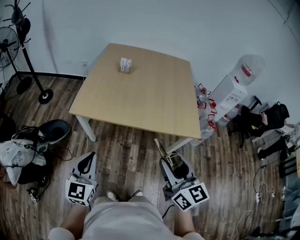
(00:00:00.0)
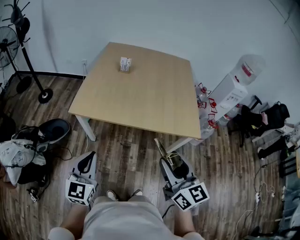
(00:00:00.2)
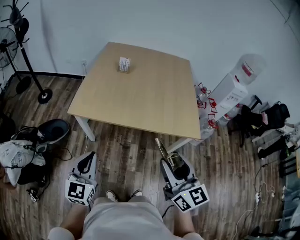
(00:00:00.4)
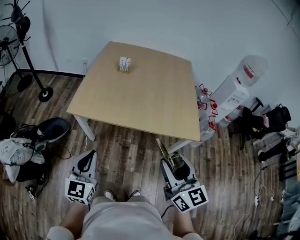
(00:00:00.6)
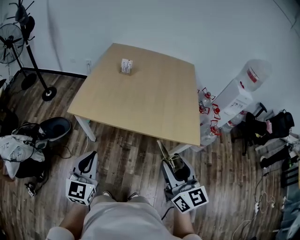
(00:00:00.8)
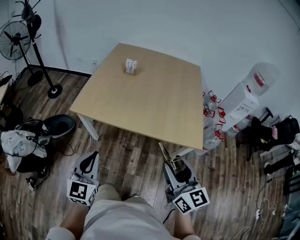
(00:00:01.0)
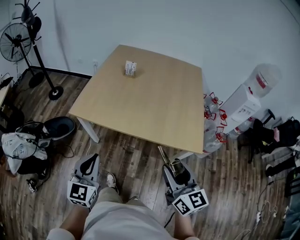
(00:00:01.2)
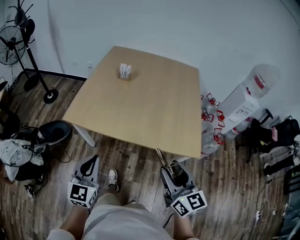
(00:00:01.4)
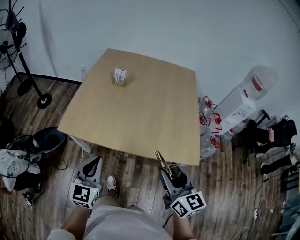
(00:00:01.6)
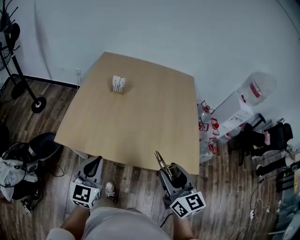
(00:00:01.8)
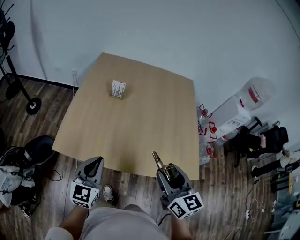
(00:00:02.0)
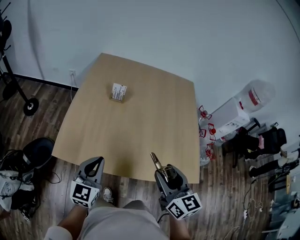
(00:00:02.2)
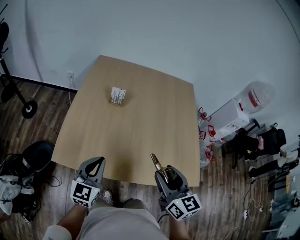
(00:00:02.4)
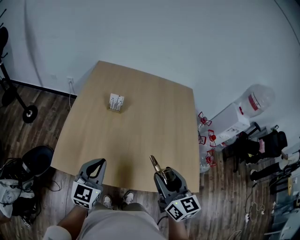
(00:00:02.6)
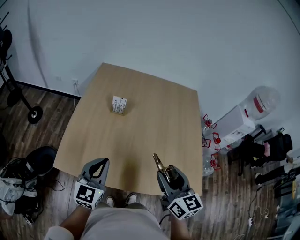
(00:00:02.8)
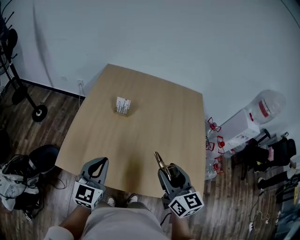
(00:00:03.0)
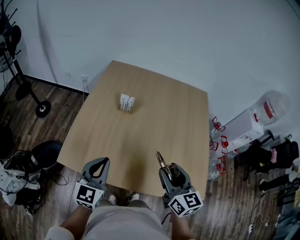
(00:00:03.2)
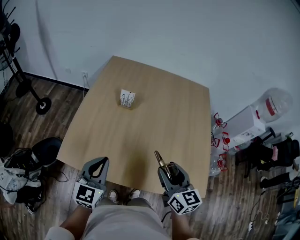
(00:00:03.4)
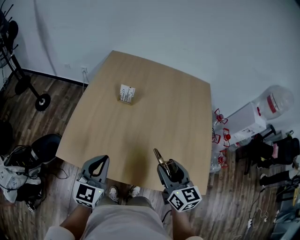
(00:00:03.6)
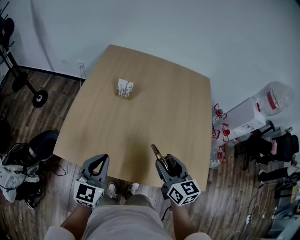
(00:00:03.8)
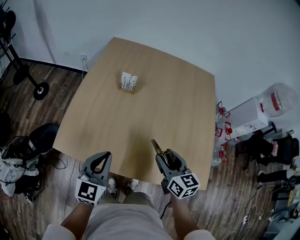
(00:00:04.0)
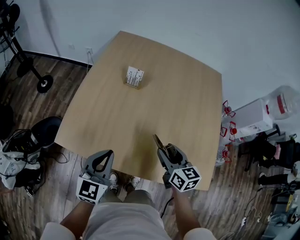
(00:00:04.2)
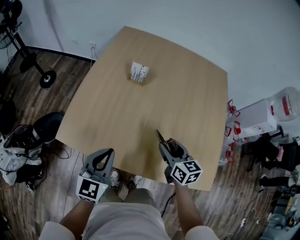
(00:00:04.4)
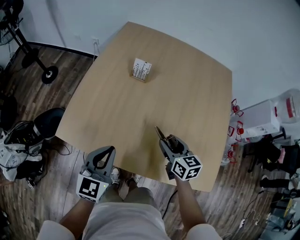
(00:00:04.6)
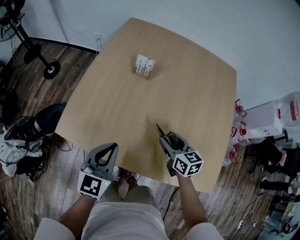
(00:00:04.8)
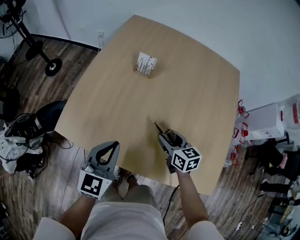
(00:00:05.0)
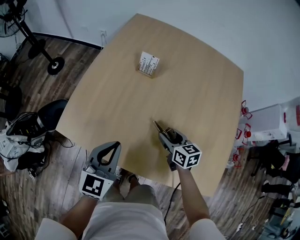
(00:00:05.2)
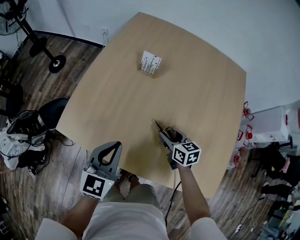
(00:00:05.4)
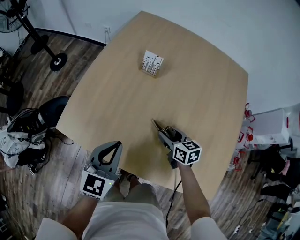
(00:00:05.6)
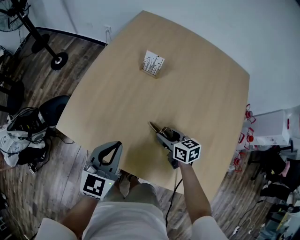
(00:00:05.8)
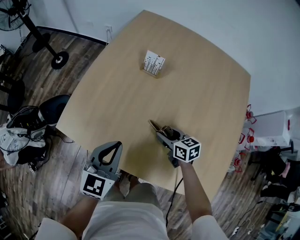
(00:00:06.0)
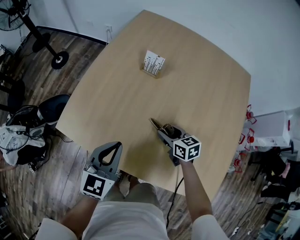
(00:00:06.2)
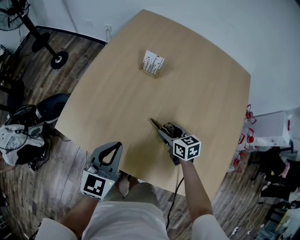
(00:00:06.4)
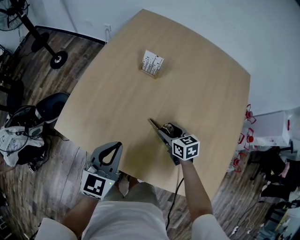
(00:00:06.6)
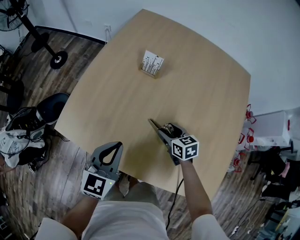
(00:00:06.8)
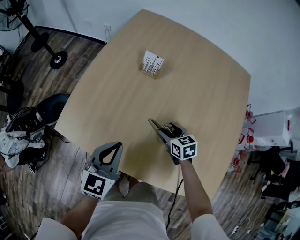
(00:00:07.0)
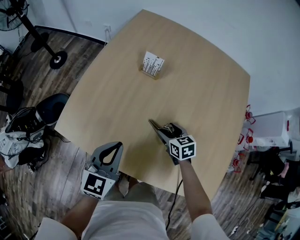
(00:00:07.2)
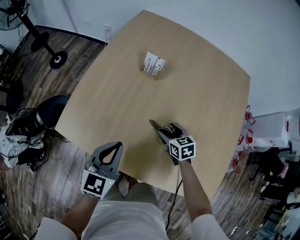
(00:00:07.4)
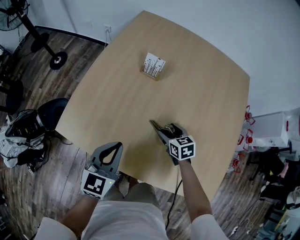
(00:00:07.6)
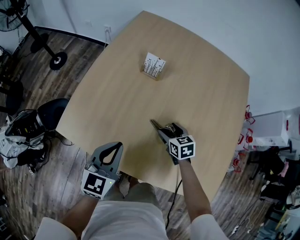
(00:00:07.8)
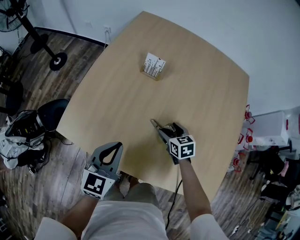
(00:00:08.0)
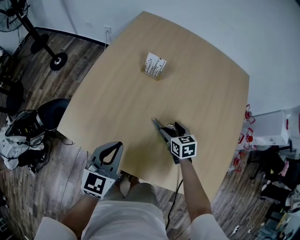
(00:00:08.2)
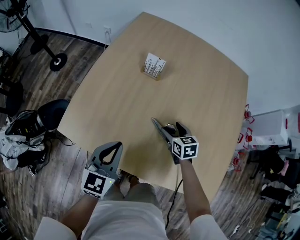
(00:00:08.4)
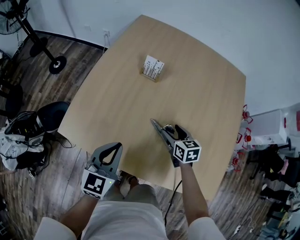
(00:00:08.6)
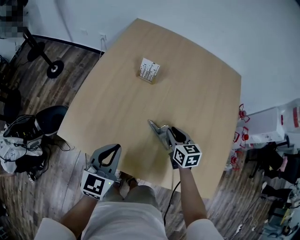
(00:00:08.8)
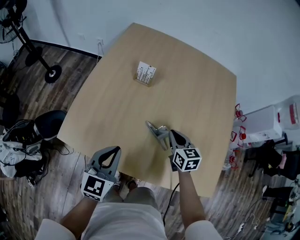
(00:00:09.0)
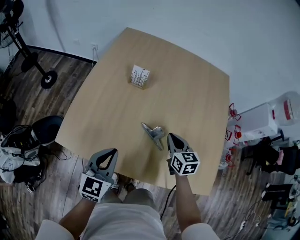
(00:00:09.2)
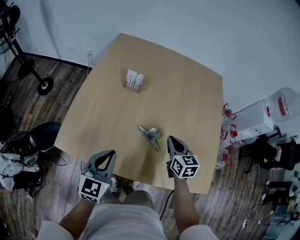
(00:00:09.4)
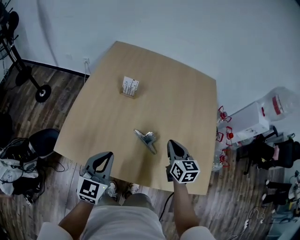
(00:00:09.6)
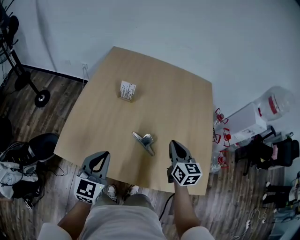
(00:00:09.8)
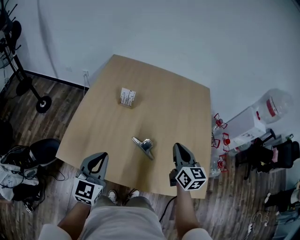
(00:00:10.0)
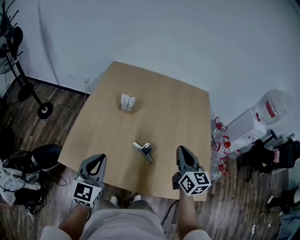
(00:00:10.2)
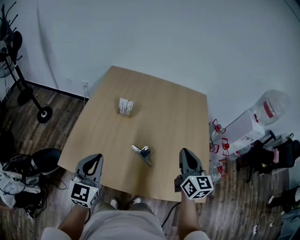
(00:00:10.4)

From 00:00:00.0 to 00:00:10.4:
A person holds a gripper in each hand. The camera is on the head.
From 00:00:00.0 to 00:00:01.4: The grippers both shift to the right and forward by about 15 cm.
From 00:00:01.4 to 00:00:03.0: The grippers both shift forward by approximately 30 cm.
From 00:00:03.0 to 00:00:04.4: The right gripper heads downward and forward, covering about 20 cm. Meanwhile the left gripper travels downward by roughly 10 cm.
From 00:00:04.4 to 00:00:06.0: The left gripper changes place by roughly 5 cm. Meanwhile the right gripper is displaced downward and forward by some 15 cm, and swivels roughly 30 degrees.
From 00:00:06.0 to 00:00:07.4: The grippers move only a little.
From 00:00:07.4 to 00:00:09.0: The right gripper moves upward, approximately 10 cm, rotates some 20 degrees, and closes up.
From 00:00:09.0 to 00:00:10.4: The left gripper heads upward, covering some 10 cm. Meanwhile the right gripper goes approximately 25 cm upward, and rotates roughly 30 degrees.

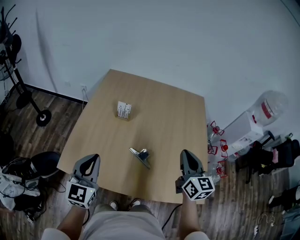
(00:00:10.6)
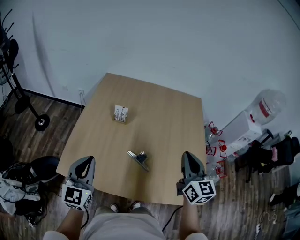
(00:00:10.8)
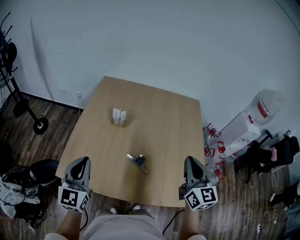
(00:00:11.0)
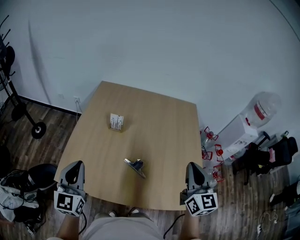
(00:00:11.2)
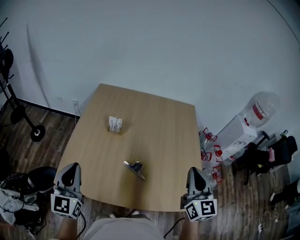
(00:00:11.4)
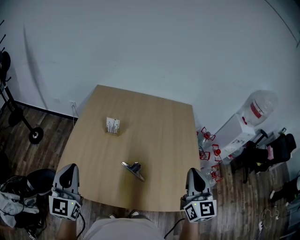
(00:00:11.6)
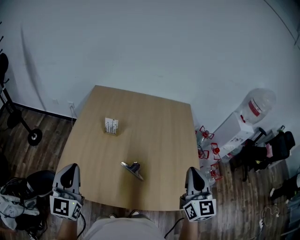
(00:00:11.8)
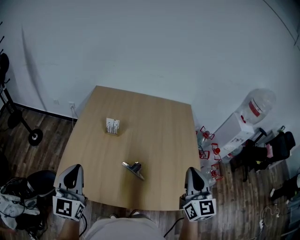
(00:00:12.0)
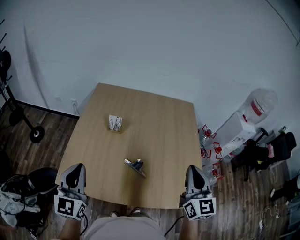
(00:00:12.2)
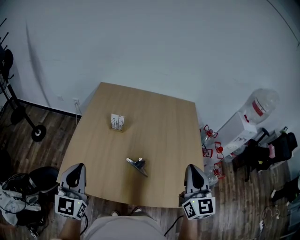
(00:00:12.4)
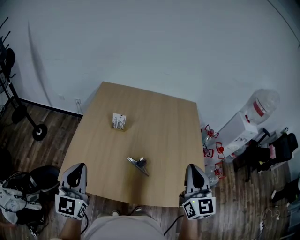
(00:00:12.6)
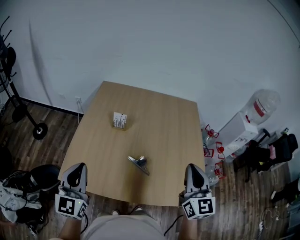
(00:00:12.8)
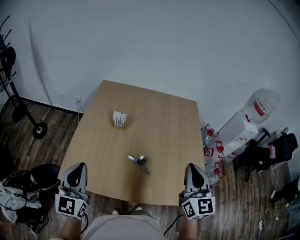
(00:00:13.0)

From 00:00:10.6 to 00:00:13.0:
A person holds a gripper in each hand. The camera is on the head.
From 00:00:10.6 to 00:00:11.8: The left gripper heads upward, covering roughly 5 cm, while the right gripper travels upward and backward by some 10 cm.
From 00:00:11.8 to 00:00:13.0: The grippers make only small movements.

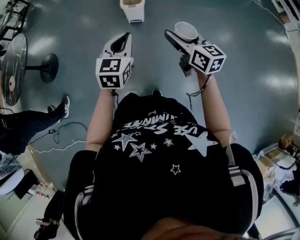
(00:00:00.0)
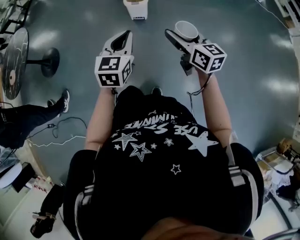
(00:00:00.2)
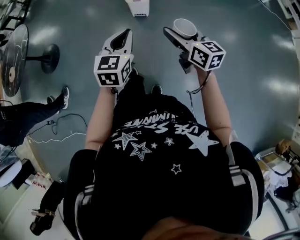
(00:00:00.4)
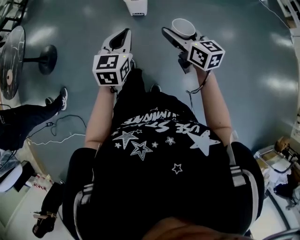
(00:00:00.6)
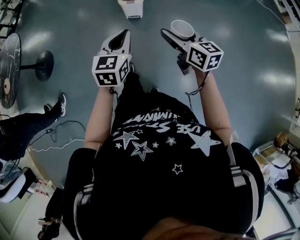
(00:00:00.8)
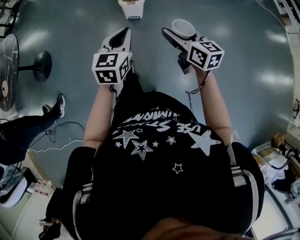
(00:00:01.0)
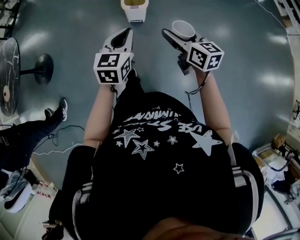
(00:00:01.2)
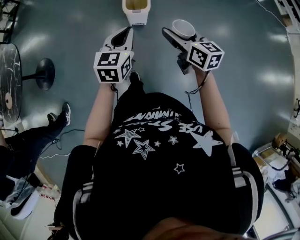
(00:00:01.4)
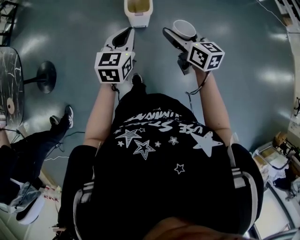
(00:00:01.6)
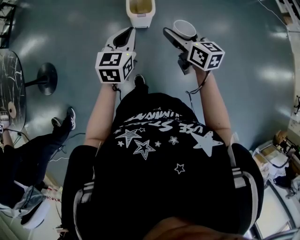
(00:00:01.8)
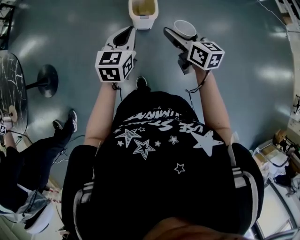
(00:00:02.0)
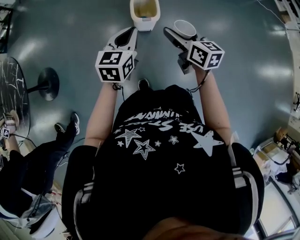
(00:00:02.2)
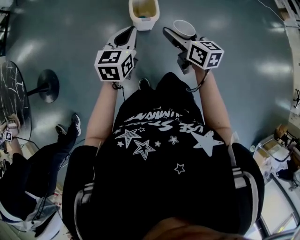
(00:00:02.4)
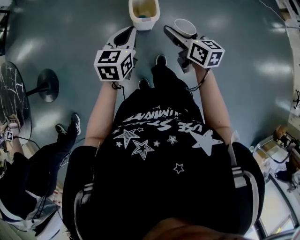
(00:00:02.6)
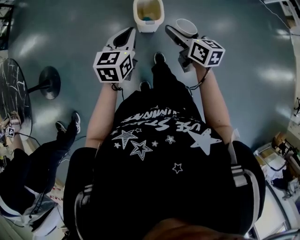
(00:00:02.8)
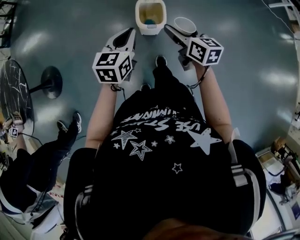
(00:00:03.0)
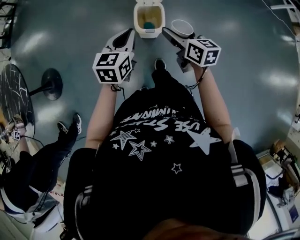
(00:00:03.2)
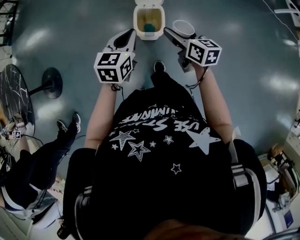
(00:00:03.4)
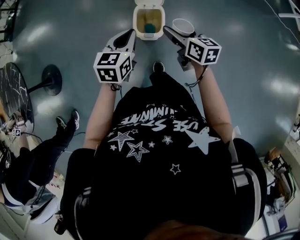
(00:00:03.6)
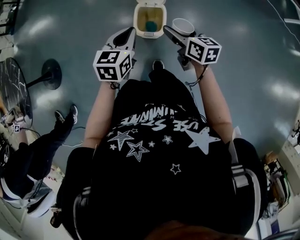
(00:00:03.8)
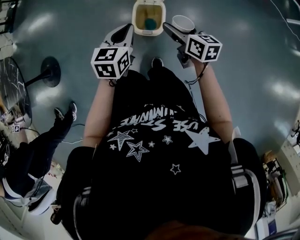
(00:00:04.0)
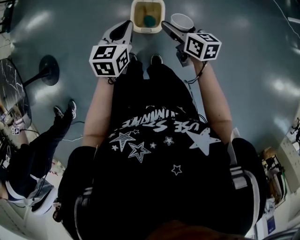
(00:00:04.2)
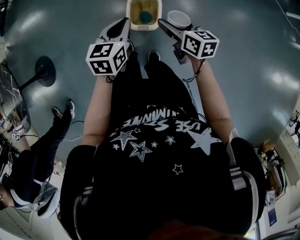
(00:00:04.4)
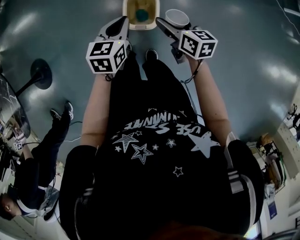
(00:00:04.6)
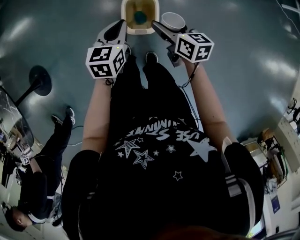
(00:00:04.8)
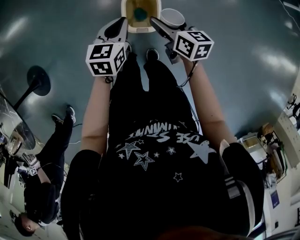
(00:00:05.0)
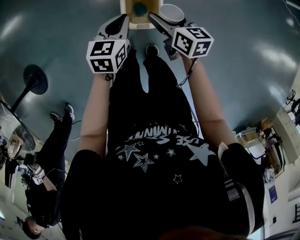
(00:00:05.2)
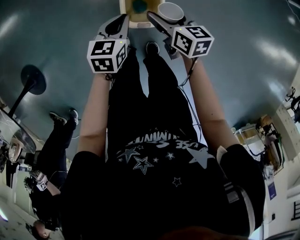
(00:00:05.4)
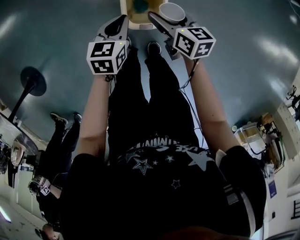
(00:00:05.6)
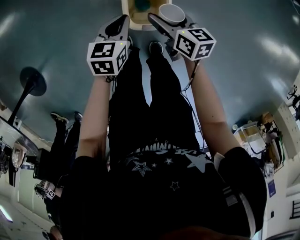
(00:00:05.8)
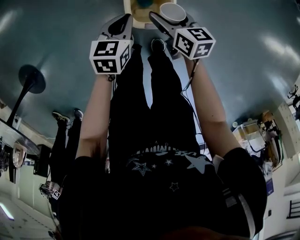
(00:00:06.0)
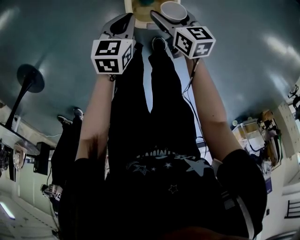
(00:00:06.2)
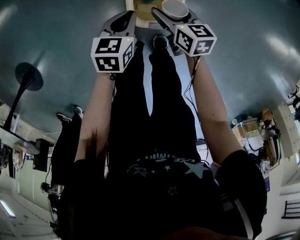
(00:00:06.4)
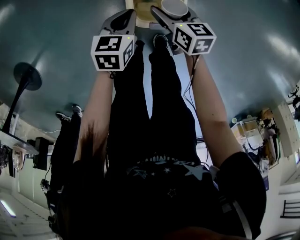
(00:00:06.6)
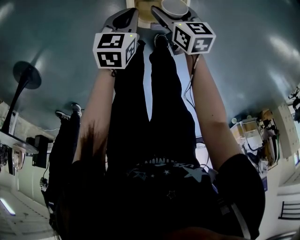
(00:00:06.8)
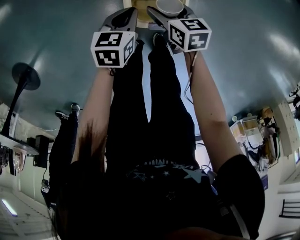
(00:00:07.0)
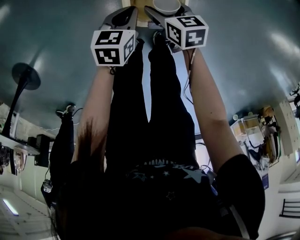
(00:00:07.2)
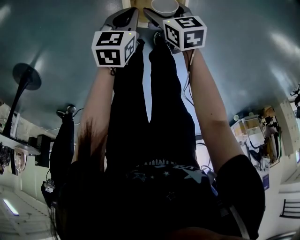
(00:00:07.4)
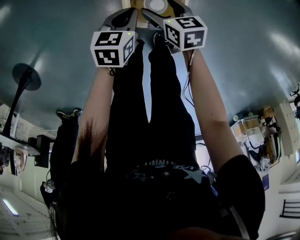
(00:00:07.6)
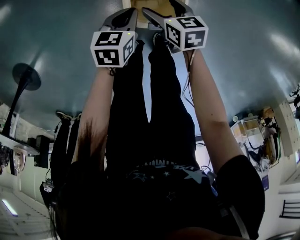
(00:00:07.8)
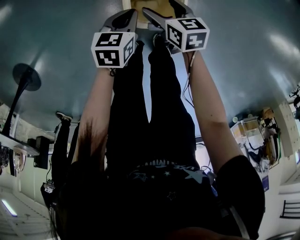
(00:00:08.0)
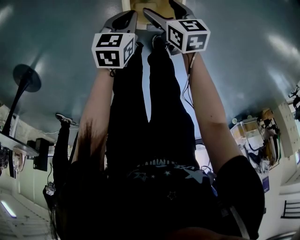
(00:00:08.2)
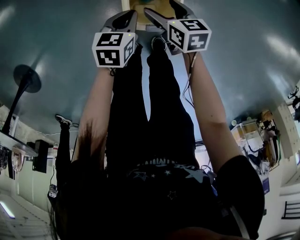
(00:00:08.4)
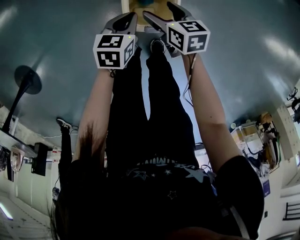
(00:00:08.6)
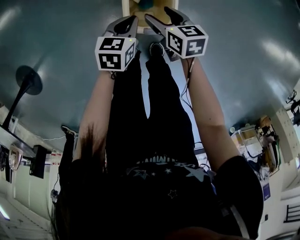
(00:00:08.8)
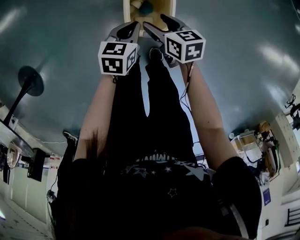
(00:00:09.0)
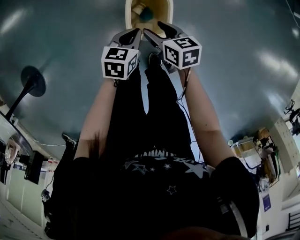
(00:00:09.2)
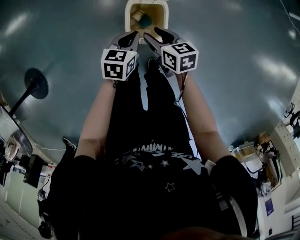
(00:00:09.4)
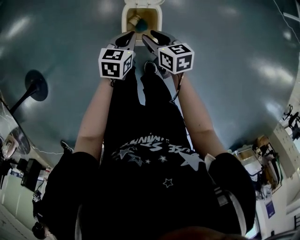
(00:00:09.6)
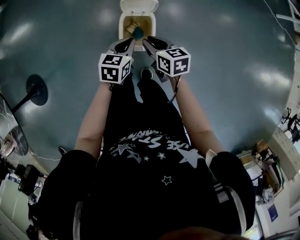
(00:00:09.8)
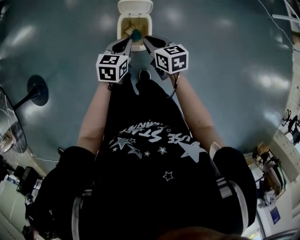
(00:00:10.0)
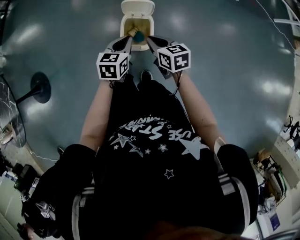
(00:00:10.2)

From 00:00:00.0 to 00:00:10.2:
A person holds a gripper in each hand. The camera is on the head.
From 00:00:00.0 to 00:00:01.4: The grippers both shift forward by some 20 cm.
From 00:00:01.4 to 00:00:03.0: The grippers both shift forward by approximately 20 cm.
From 00:00:03.0 to 00:00:04.4: The left gripper goes about 15 cm forward, to the right and downward. The right gripper heads forward, downward and to the right, covering approximately 15 cm.
From 00:00:04.4 to 00:00:05.8: The right gripper goes roughly 20 cm downward, forward and to the left. Meanwhile the left gripper moves downward and forward, some 25 cm.
From 00:00:05.8 to 00:00:07.2: Both grippers move downward, approximately 15 cm.
From 00:00:07.2 to 00:00:08.8: The two grippers go about 10 cm upward.
From 00:00:08.8 to 00:00:10.2: The left gripper is displaced upward by approximately 20 cm. The right gripper shifts approximately 25 cm upward and backward, and closes its fingers.
